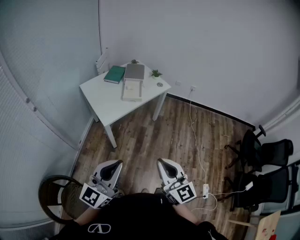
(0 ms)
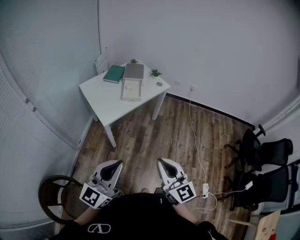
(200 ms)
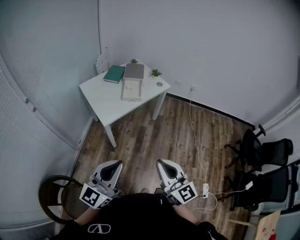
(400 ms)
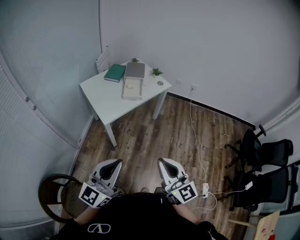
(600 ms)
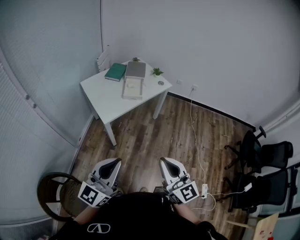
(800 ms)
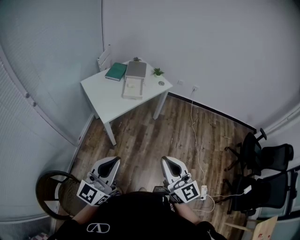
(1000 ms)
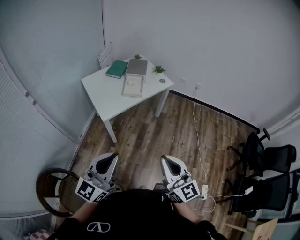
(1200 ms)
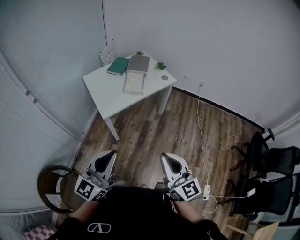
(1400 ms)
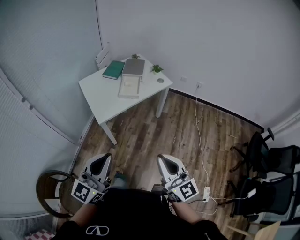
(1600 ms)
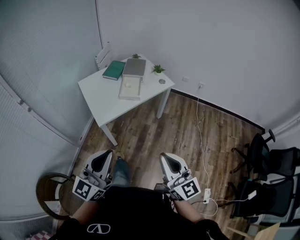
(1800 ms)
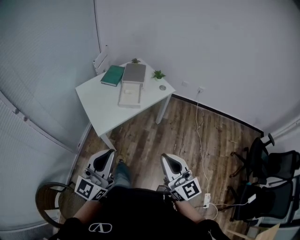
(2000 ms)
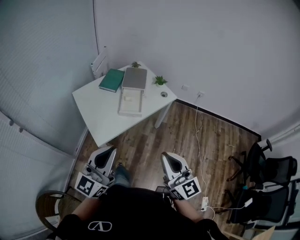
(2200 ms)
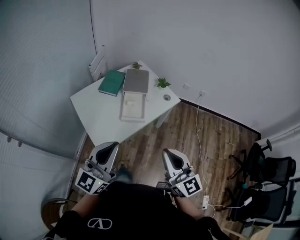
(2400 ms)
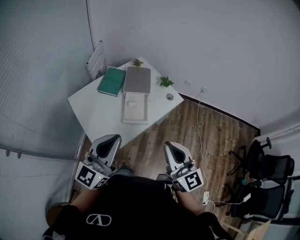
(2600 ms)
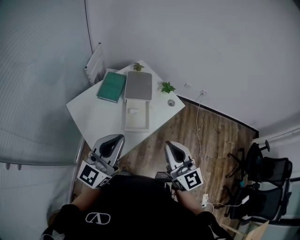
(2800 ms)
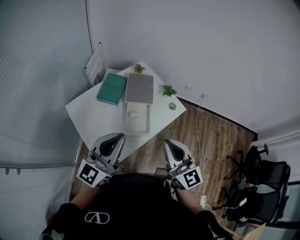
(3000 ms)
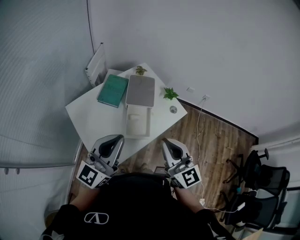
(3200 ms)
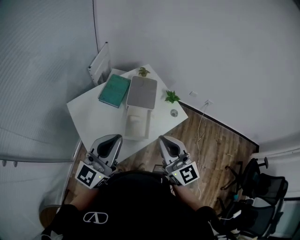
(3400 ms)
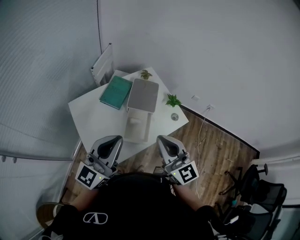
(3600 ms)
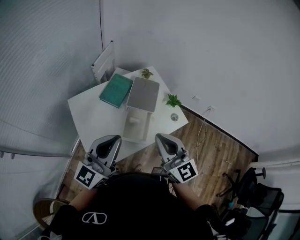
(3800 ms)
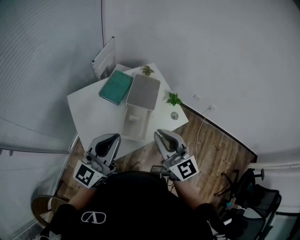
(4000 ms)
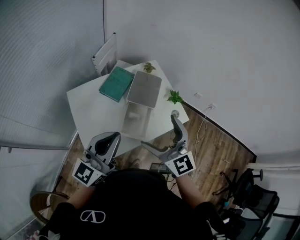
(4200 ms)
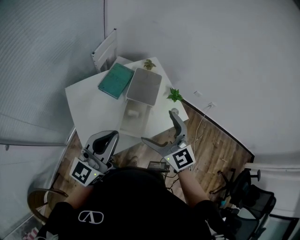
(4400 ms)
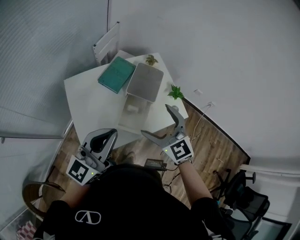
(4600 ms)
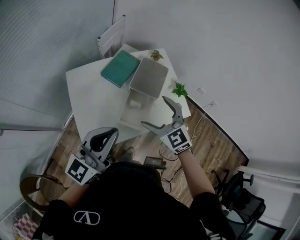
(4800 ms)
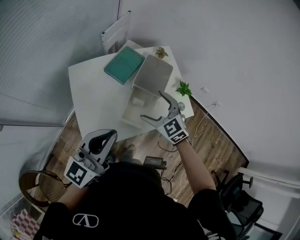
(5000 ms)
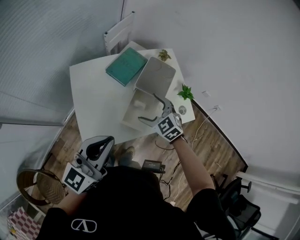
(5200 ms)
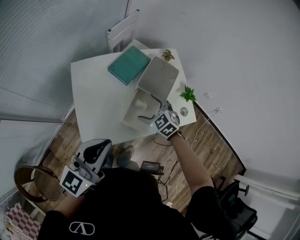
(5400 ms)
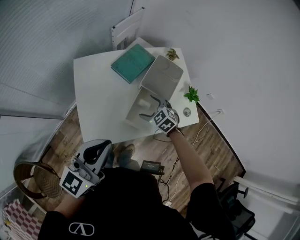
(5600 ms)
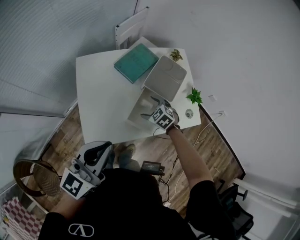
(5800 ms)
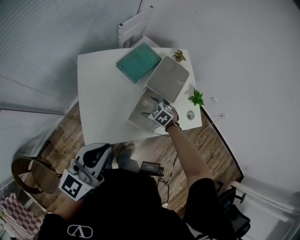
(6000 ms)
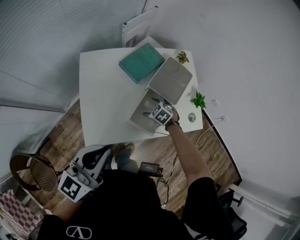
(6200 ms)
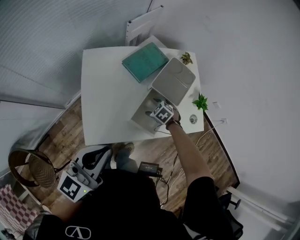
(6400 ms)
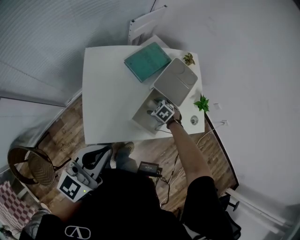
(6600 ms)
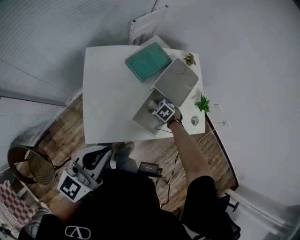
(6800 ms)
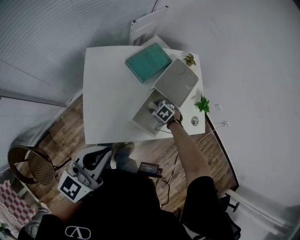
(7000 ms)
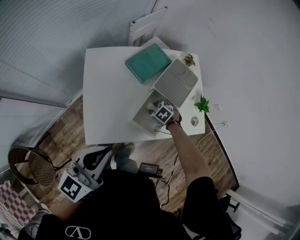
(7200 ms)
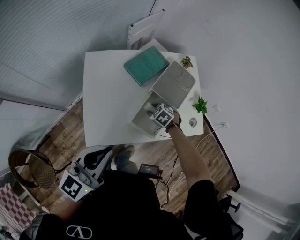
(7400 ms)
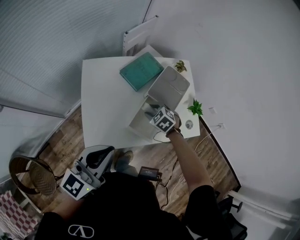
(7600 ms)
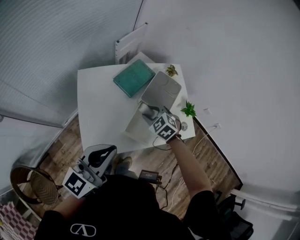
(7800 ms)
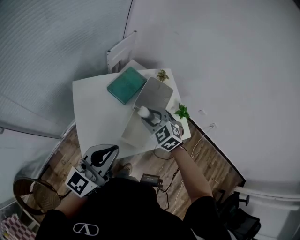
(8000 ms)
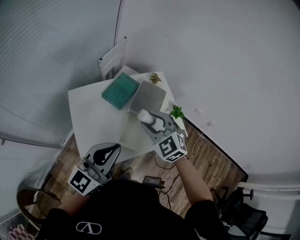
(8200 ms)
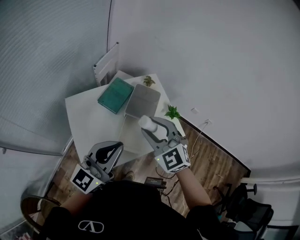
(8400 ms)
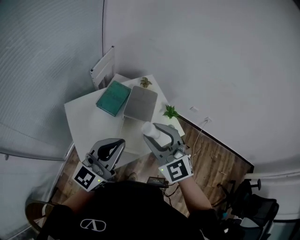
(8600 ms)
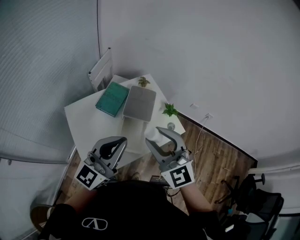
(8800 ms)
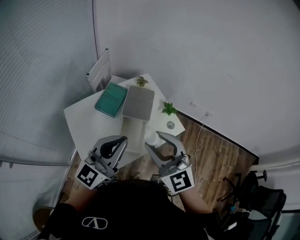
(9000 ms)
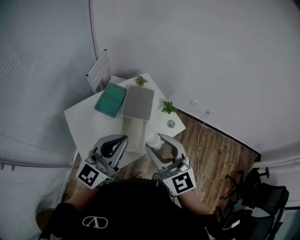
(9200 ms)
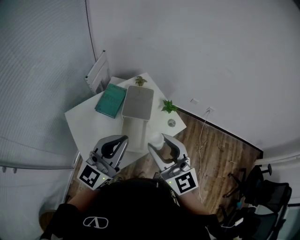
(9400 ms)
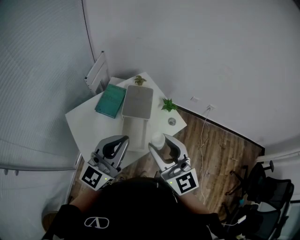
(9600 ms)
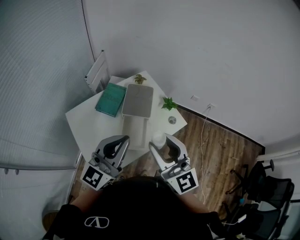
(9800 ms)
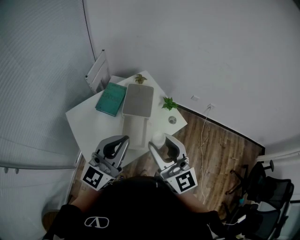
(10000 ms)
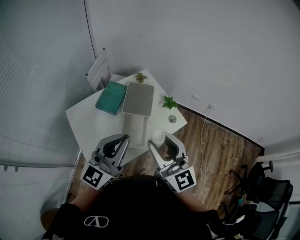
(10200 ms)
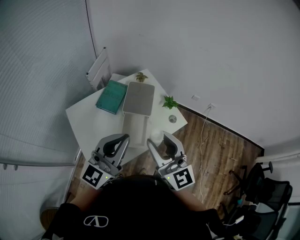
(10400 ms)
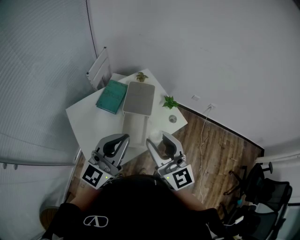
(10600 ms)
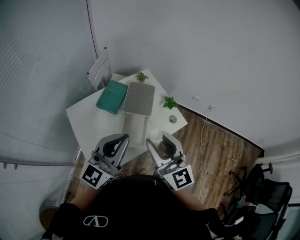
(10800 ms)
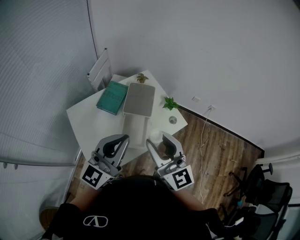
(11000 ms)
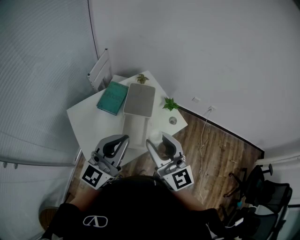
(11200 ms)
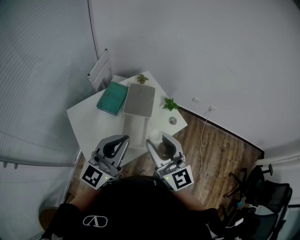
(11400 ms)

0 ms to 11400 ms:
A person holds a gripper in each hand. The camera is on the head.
0 ms to 1400 ms: The grippers both shift to the right by roughly 5 cm.
1400 ms to 2800 ms: The two grippers travel together, forward, approximately 50 cm.
2800 ms to 4200 ms: The right gripper shifts some 15 cm forward, changes its angle by some 20 degrees, and opens. Meanwhile the left gripper travels forward by about 10 cm.
4200 ms to 5600 ms: The right gripper goes approximately 30 cm downward, and angles its fingers downward, by roughly 50 degrees. The left gripper travels downward and to the left by some 10 cm.
5600 ms to 7200 ms: The right gripper goes roughly 15 cm downward, swivels roughly 20 degrees, and closes.
7200 ms to 8600 ms: The left gripper heads upward, covering roughly 10 cm, and rotates approximately 30 degrees, while the right gripper travels upward by roughly 50 cm, and tips its fingers upward by approximately 60 degrees.
8600 ms to 10000 ms: The right gripper heads to the right and backward, covering some 10 cm, and swivels about 40 degrees.
10000 ms to 11400 ms: The grippers make only small movements.

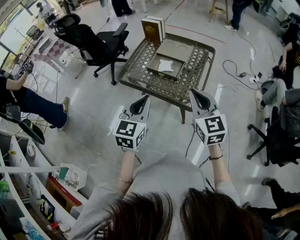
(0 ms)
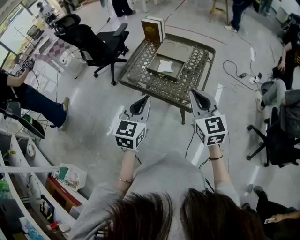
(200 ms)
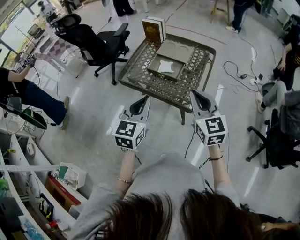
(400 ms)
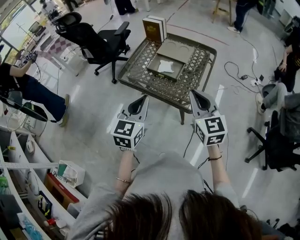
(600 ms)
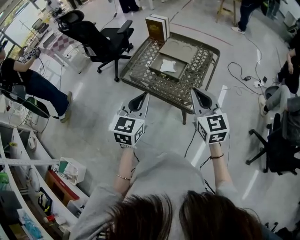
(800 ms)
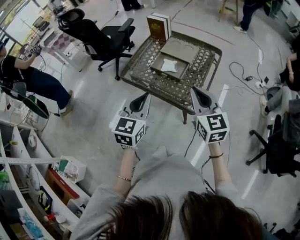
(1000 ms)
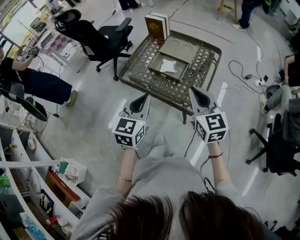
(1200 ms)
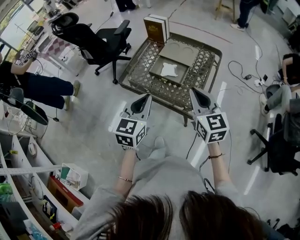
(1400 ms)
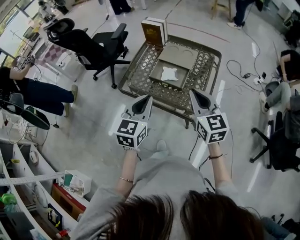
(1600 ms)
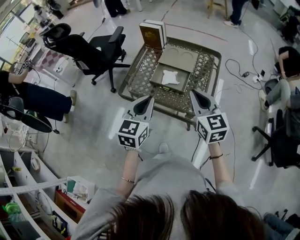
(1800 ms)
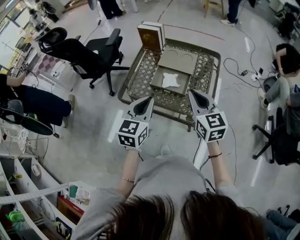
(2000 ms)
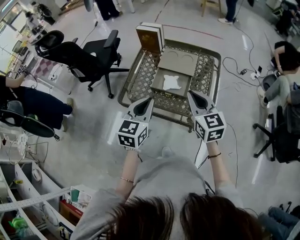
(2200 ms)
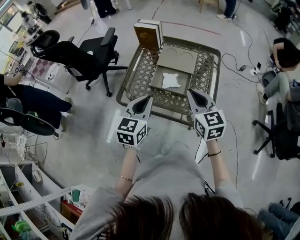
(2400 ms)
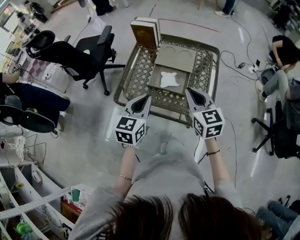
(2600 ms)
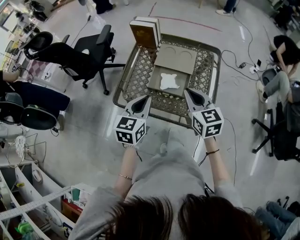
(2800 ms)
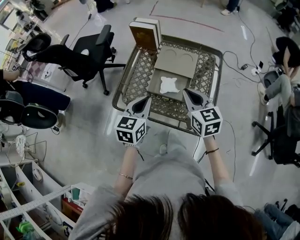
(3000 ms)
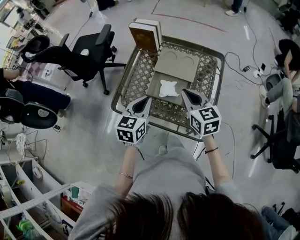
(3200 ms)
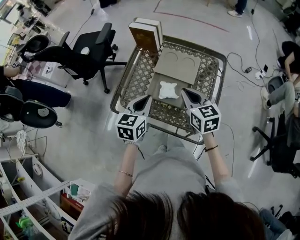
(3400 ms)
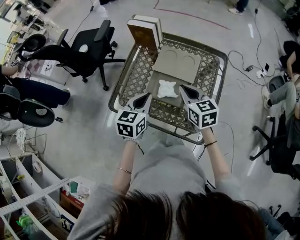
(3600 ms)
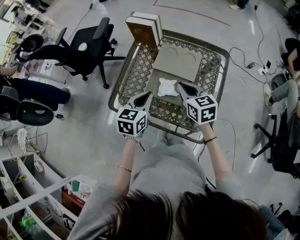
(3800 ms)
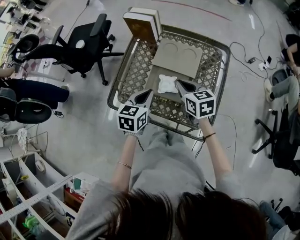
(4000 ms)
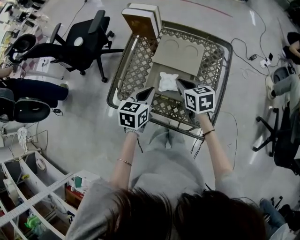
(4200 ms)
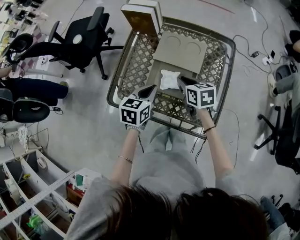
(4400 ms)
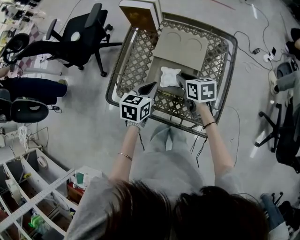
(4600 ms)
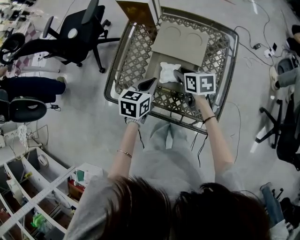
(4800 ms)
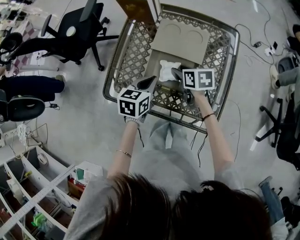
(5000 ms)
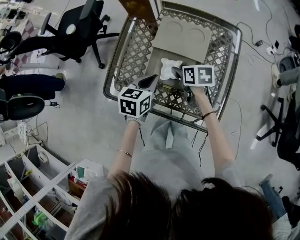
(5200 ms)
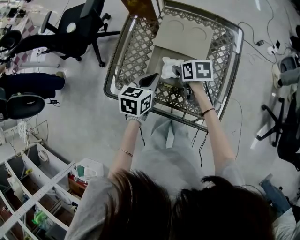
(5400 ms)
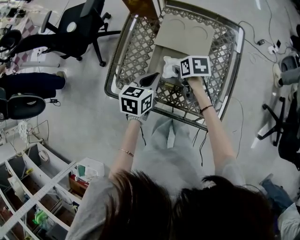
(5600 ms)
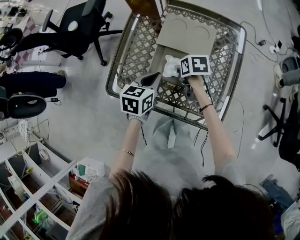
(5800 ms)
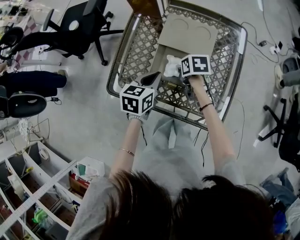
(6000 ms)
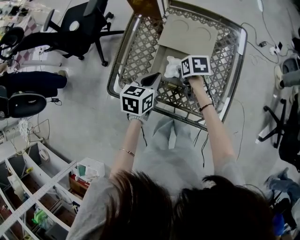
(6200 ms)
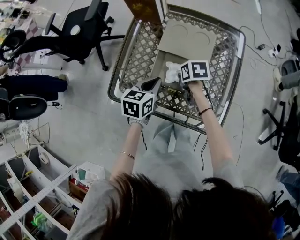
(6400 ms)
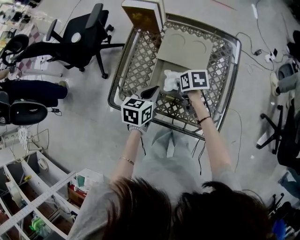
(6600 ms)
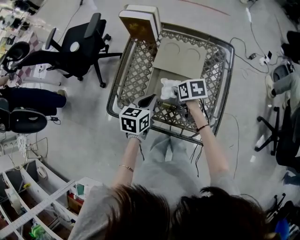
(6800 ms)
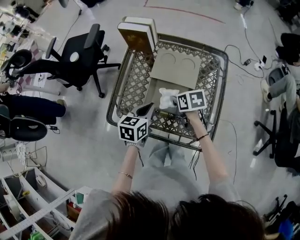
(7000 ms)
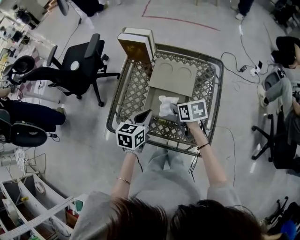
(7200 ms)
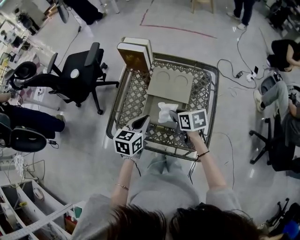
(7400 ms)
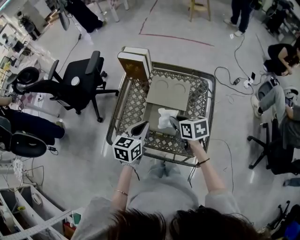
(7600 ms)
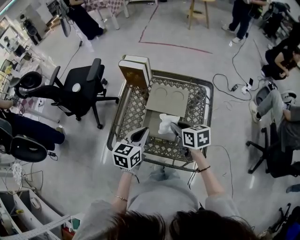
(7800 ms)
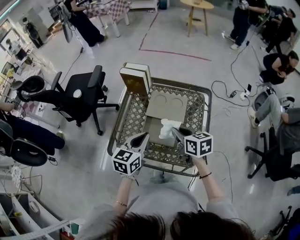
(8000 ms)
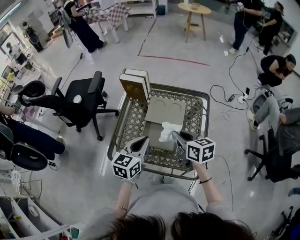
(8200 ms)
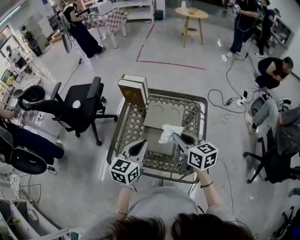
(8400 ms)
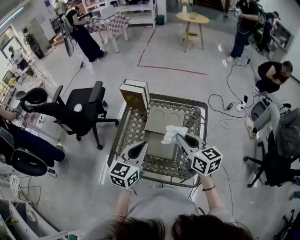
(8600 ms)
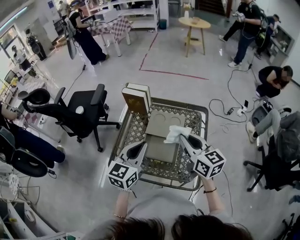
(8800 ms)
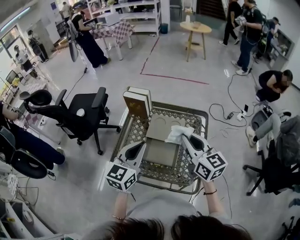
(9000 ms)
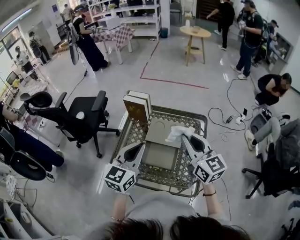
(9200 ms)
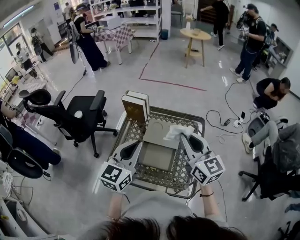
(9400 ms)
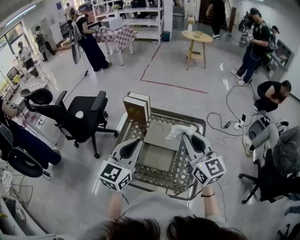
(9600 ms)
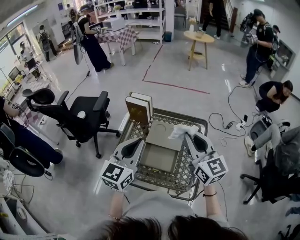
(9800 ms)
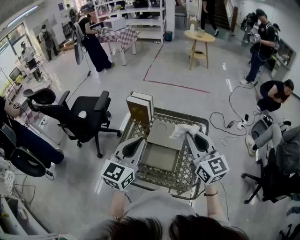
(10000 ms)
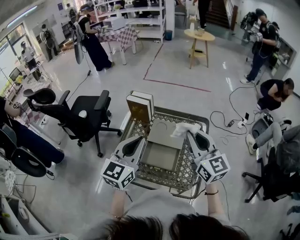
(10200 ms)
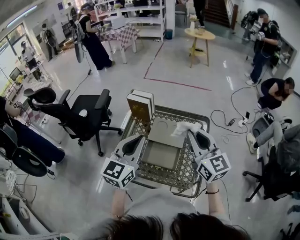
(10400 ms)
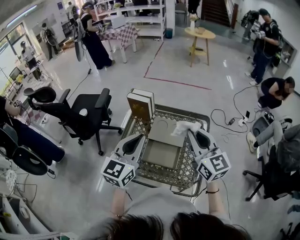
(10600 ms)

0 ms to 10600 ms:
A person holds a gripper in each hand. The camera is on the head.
0 ms to 1600 ms: Both grippers move forward, roughly 10 cm.
1600 ms to 3000 ms: Both grippers move forward and downward, some 15 cm.
3000 ms to 4600 ms: Both grippers travel together downward and forward, some 20 cm. The right gripper turns by roughly 30 degrees.
4600 ms to 6000 ms: The right gripper travels downward by approximately 5 cm, and changes its angle by some 20 degrees.
6000 ms to 7600 ms: The left gripper shifts about 10 cm upward, while the right gripper goes approximately 15 cm upward, and rotates approximately 20 degrees.
7600 ms to 9000 ms: Both grippers move upward, approximately 20 cm. The right gripper tilts its fingers about 30 degrees upward. Meanwhile the left gripper rotates about 20 degrees.
9000 ms to 10600 ms: The left gripper heads upward, covering about 5 cm.

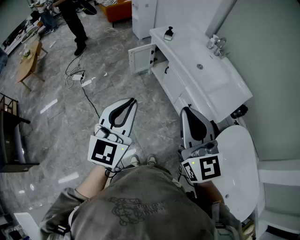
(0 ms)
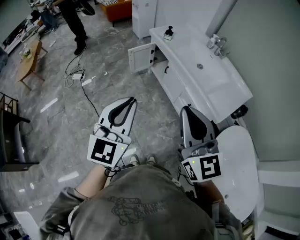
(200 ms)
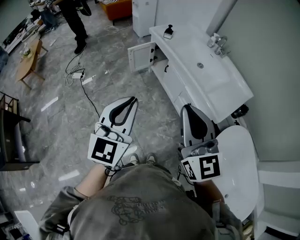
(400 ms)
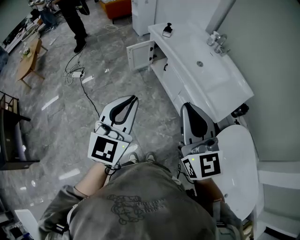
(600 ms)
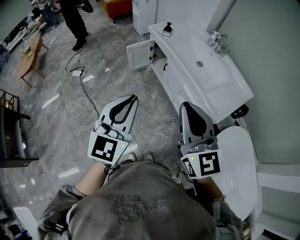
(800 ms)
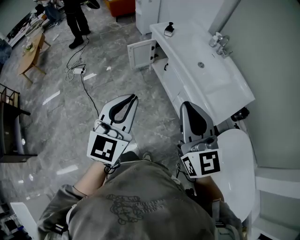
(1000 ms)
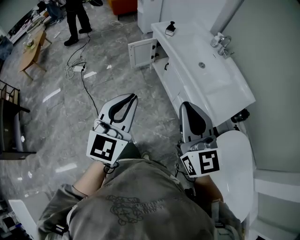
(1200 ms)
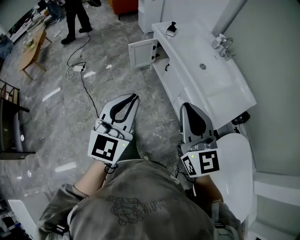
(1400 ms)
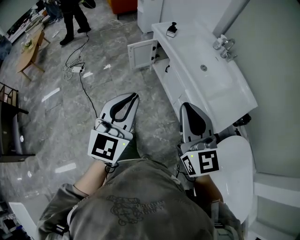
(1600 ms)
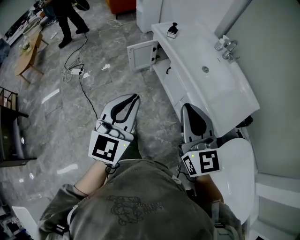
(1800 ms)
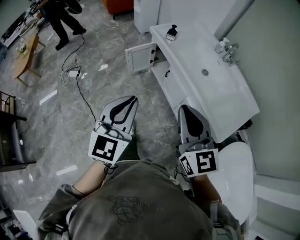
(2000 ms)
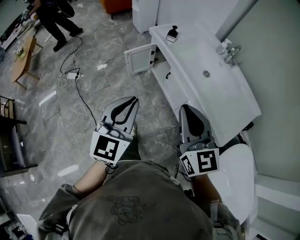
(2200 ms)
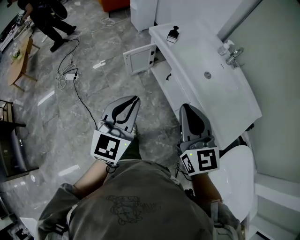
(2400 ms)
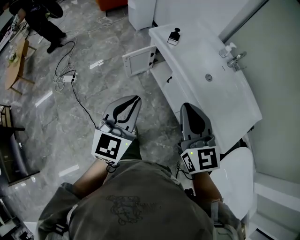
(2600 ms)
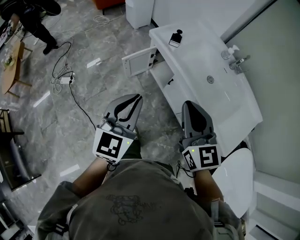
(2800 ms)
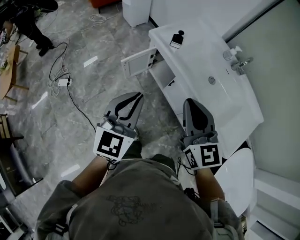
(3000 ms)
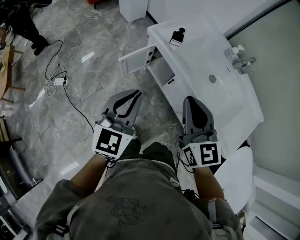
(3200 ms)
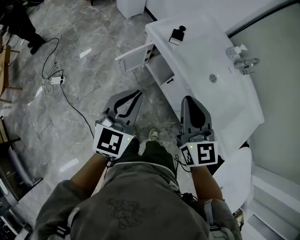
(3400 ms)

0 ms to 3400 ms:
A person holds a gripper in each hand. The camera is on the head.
0 ms to 1600 ms: The left gripper heads forward and to the right, covering approximately 10 cm, while the right gripper travels forward, downward and to the right by approximately 10 cm.
1600 ms to 3400 ms: Both grippers move forward, about 35 cm.
